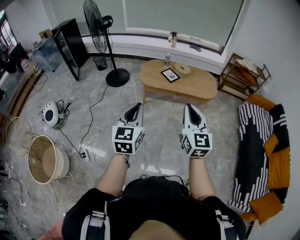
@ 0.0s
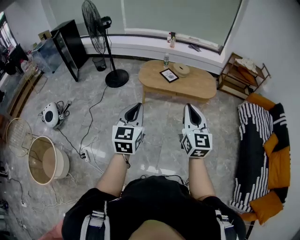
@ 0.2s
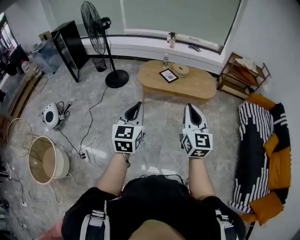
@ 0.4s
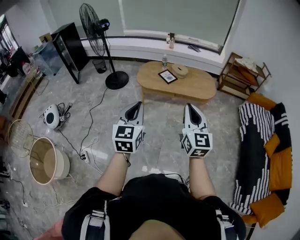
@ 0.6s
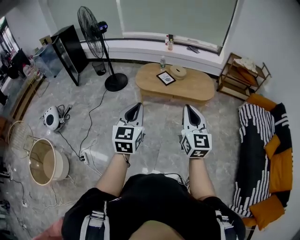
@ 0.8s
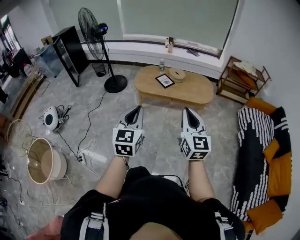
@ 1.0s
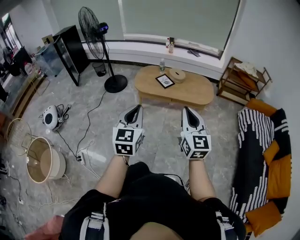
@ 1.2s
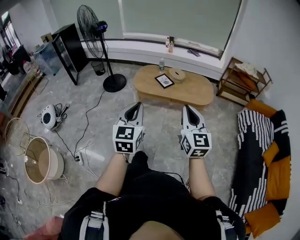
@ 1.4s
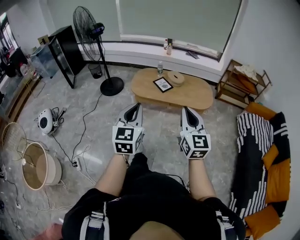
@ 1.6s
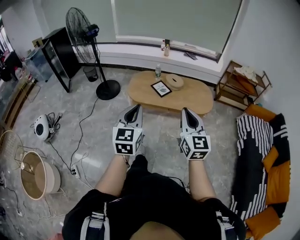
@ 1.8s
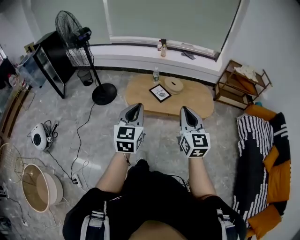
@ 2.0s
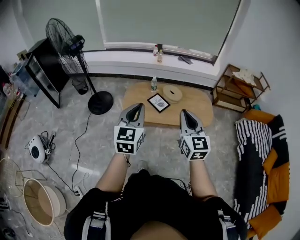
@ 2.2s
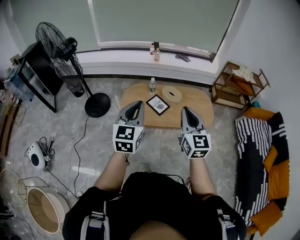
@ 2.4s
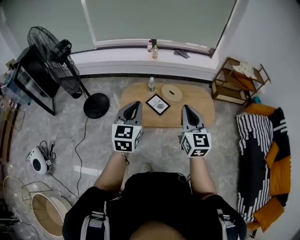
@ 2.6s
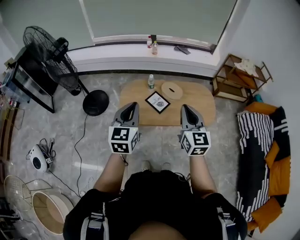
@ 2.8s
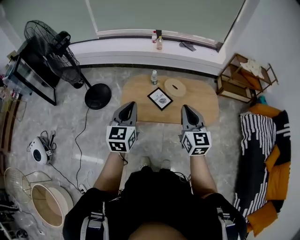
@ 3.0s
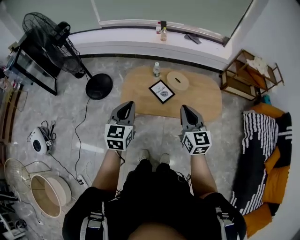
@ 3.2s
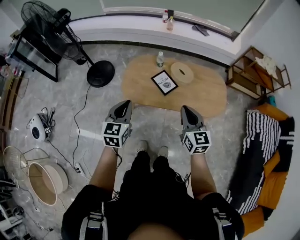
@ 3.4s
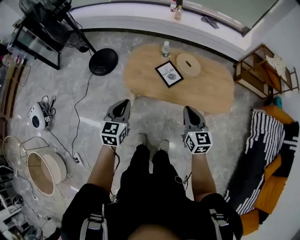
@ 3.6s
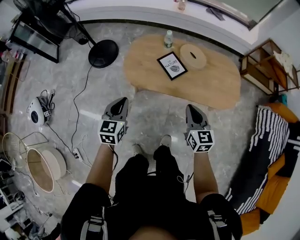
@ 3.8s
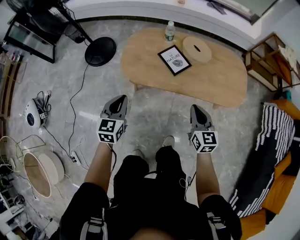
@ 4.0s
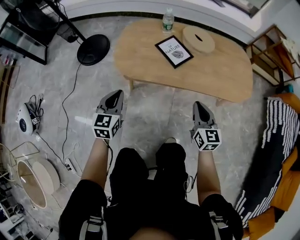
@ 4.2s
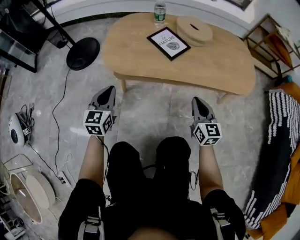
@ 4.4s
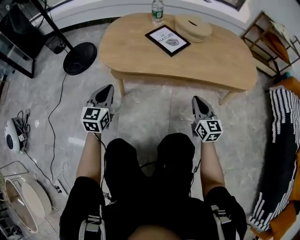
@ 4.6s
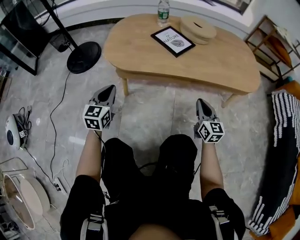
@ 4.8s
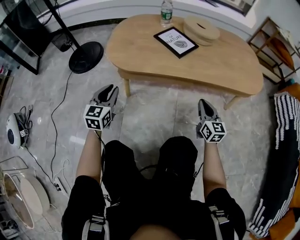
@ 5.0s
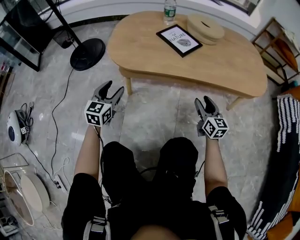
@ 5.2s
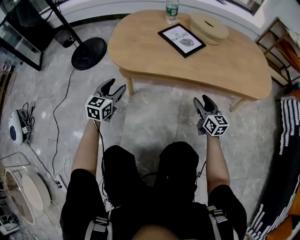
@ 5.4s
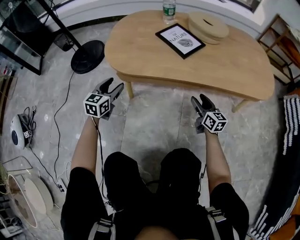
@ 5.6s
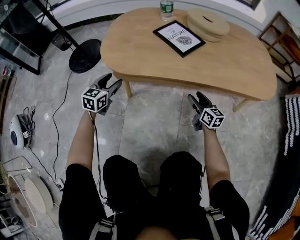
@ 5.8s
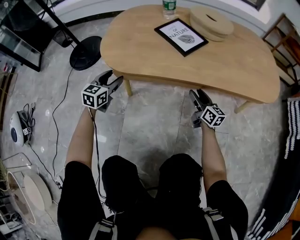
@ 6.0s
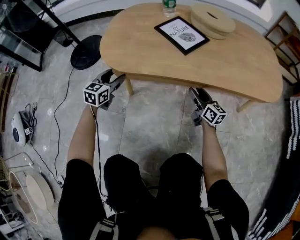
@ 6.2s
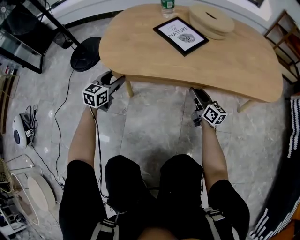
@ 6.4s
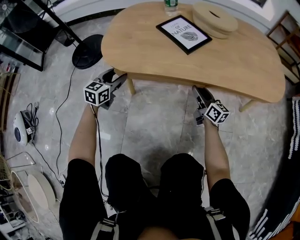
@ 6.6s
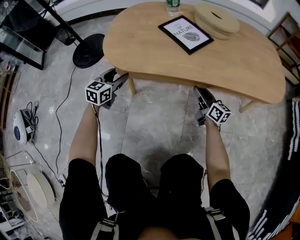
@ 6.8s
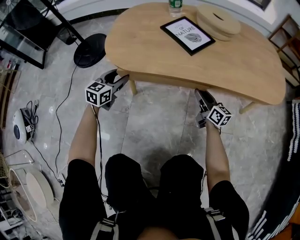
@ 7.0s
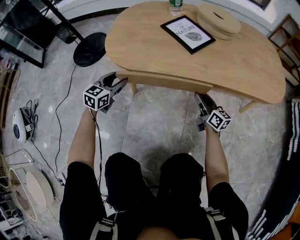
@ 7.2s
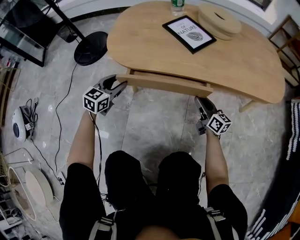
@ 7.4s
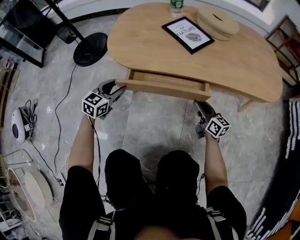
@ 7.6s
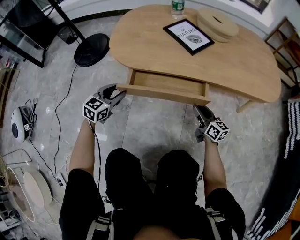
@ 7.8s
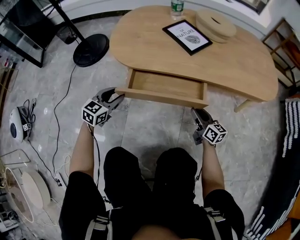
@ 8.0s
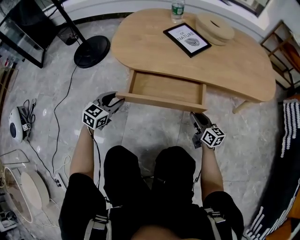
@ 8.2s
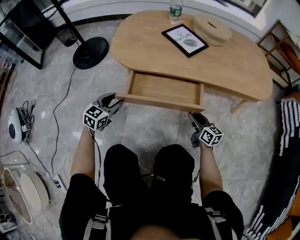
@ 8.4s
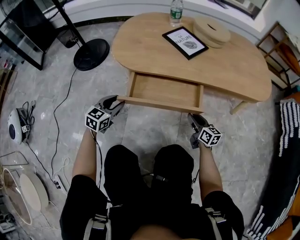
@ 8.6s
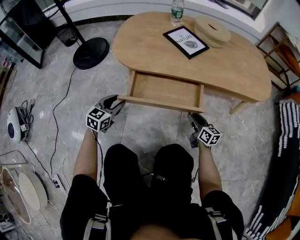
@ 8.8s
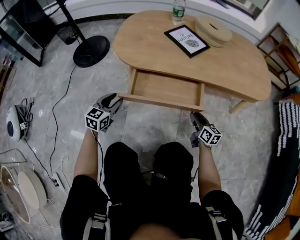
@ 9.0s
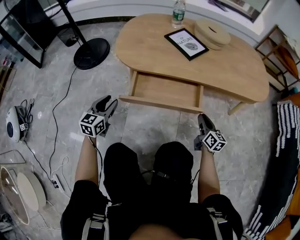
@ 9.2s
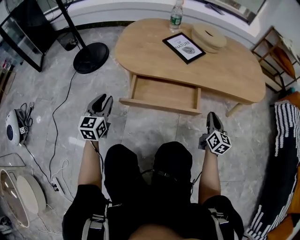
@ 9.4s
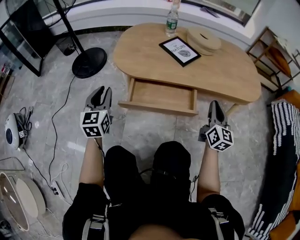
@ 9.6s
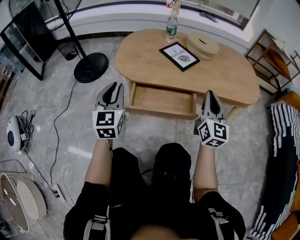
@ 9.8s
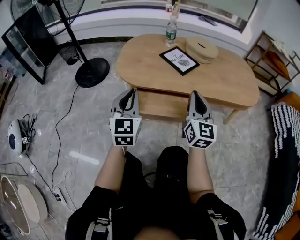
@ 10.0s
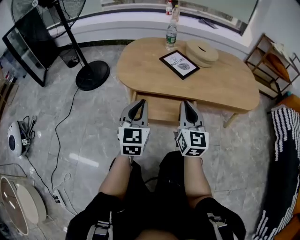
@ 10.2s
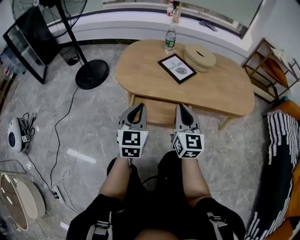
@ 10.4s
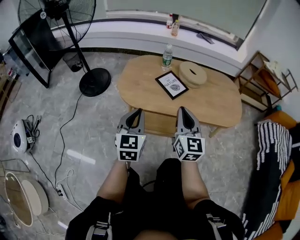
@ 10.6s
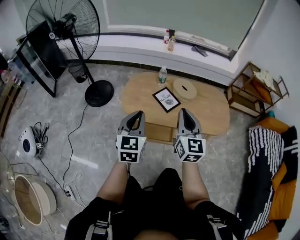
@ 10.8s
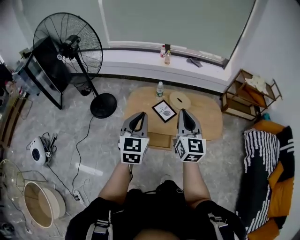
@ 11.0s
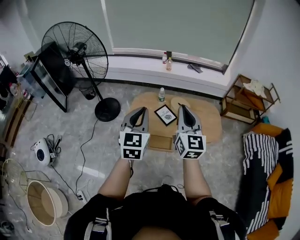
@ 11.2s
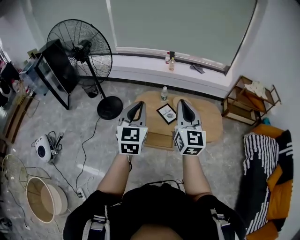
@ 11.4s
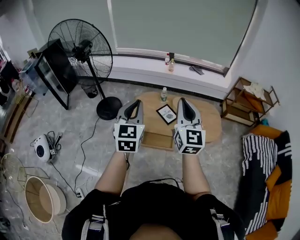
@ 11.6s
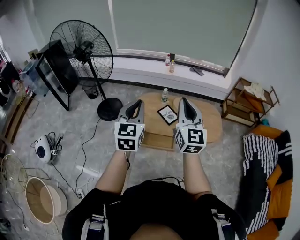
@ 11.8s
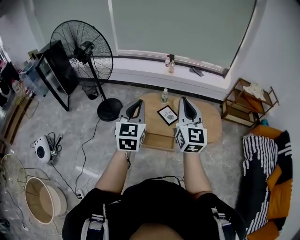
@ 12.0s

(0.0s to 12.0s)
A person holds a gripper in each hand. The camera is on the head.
0.0s - 1.6s: The left gripper shifts roughly 15 cm to the right and forward; the right gripper goes about 15 cm forward and to the right.
1.6s - 3.0s: Both grippers are carried forward, approximately 50 cm.
3.0s - 4.4s: The grippers both shift downward by about 60 cm.
4.4s - 6.0s: Both grippers travel together downward and forward, about 25 cm. The left gripper opens up. The right gripper changes its angle by some 30 degrees, and opens its fingers.
6.0s - 7.6s: The grippers both shift backward by roughly 5 cm. The right gripper closes its fingers.
7.6s - 9.0s: The grippers both shift backward by about 10 cm.
9.0s - 10.4s: The right gripper heads upward, covering approximately 35 cm, rotates roughly 40 degrees, and closes up. The left gripper goes some 30 cm upward and to the right, rotates some 20 degrees, and closes up.
10.4s - 12.0s: The grippers both shift upward by about 70 cm.

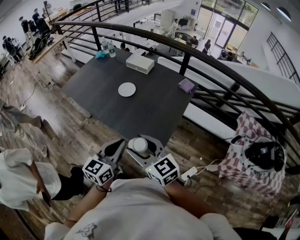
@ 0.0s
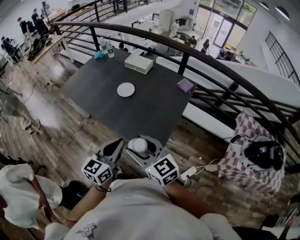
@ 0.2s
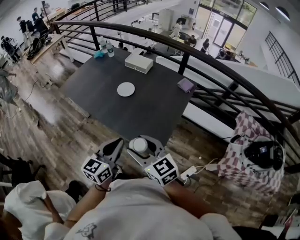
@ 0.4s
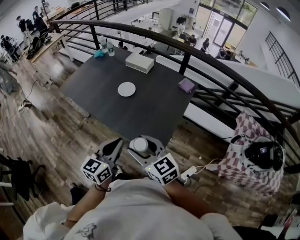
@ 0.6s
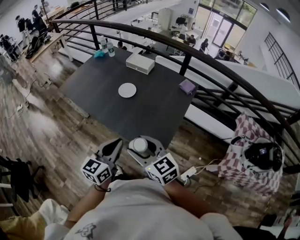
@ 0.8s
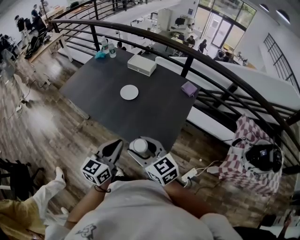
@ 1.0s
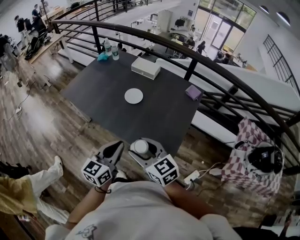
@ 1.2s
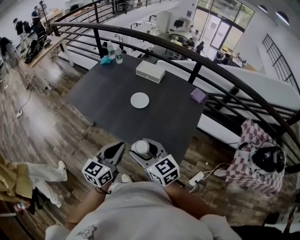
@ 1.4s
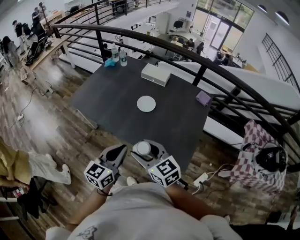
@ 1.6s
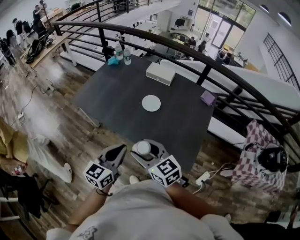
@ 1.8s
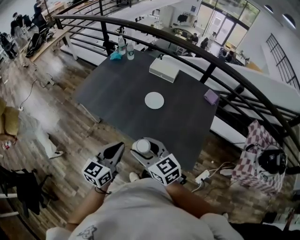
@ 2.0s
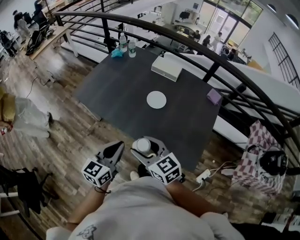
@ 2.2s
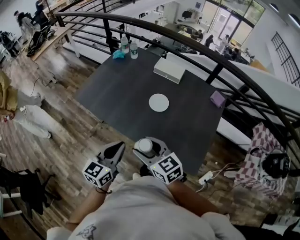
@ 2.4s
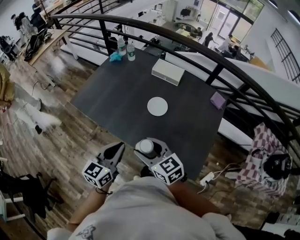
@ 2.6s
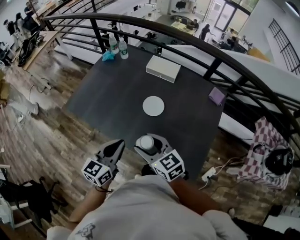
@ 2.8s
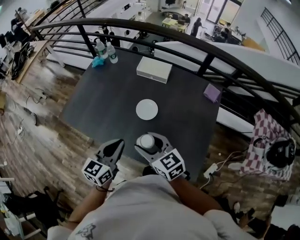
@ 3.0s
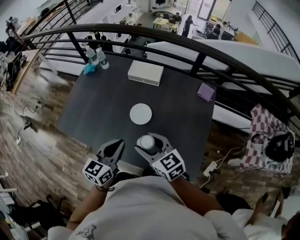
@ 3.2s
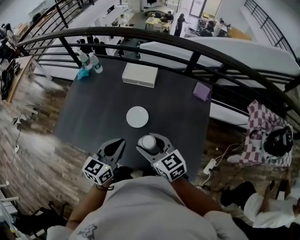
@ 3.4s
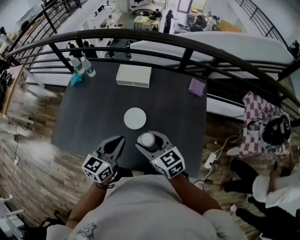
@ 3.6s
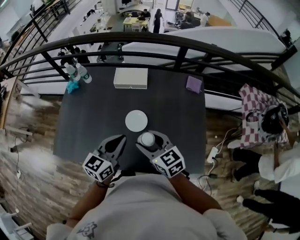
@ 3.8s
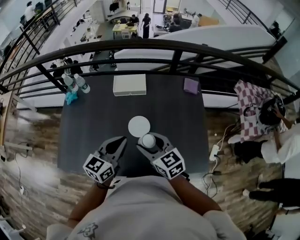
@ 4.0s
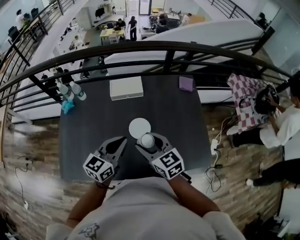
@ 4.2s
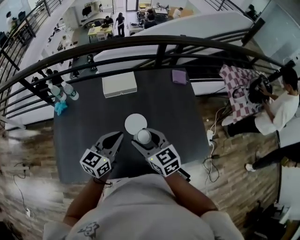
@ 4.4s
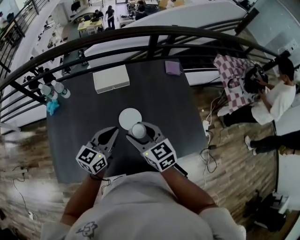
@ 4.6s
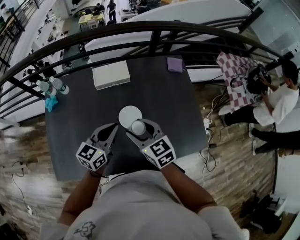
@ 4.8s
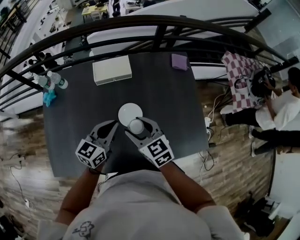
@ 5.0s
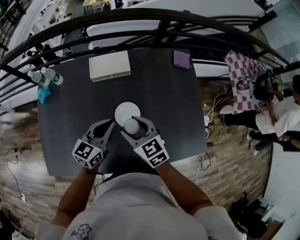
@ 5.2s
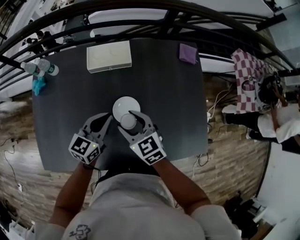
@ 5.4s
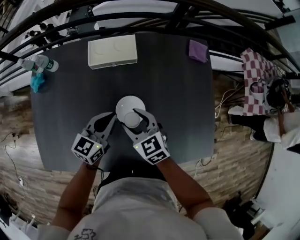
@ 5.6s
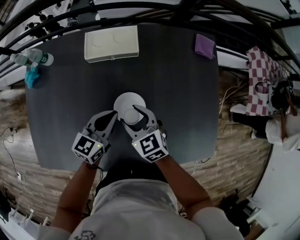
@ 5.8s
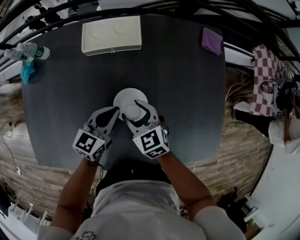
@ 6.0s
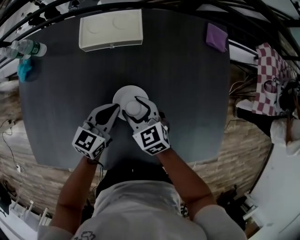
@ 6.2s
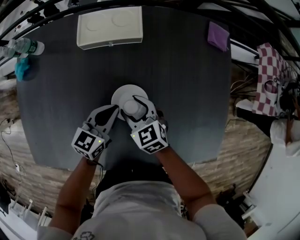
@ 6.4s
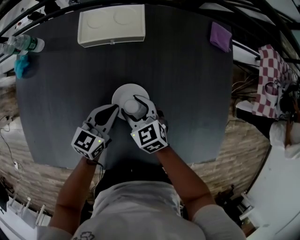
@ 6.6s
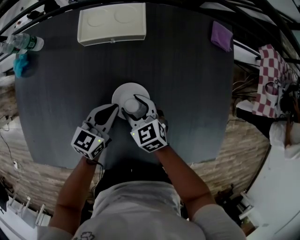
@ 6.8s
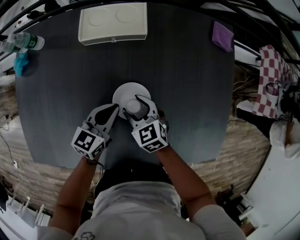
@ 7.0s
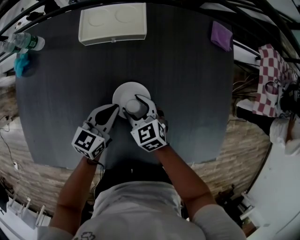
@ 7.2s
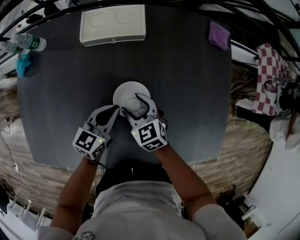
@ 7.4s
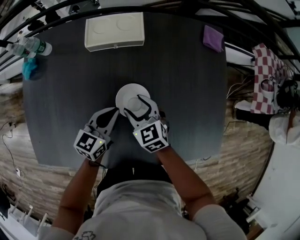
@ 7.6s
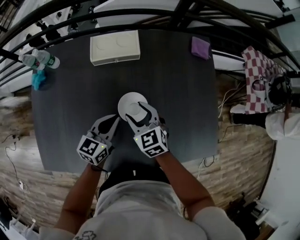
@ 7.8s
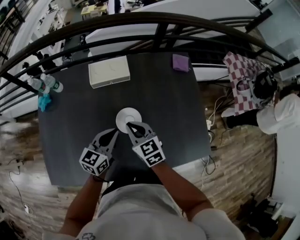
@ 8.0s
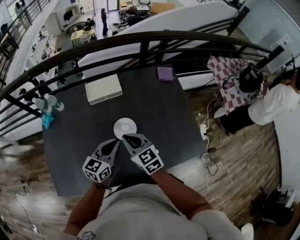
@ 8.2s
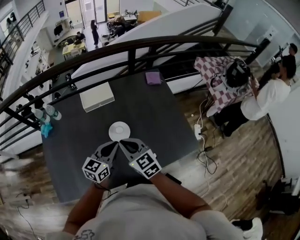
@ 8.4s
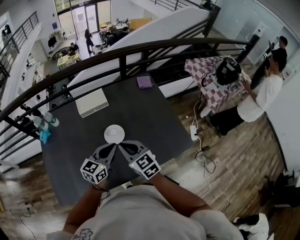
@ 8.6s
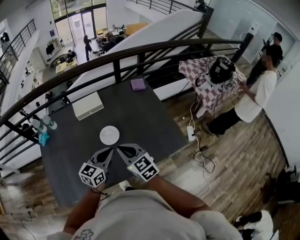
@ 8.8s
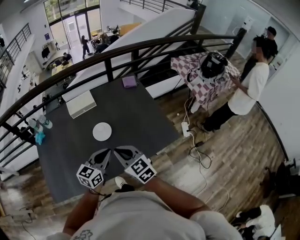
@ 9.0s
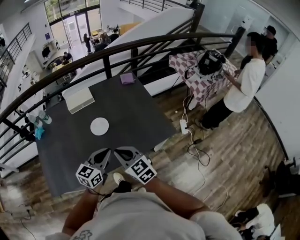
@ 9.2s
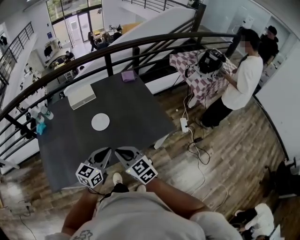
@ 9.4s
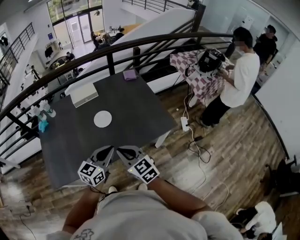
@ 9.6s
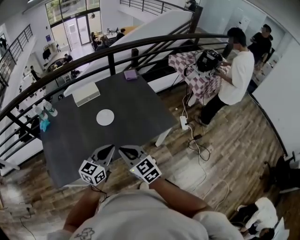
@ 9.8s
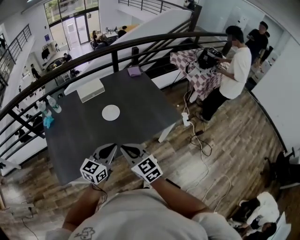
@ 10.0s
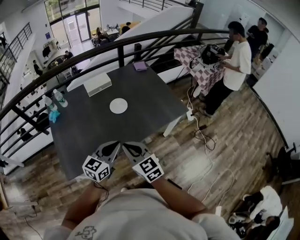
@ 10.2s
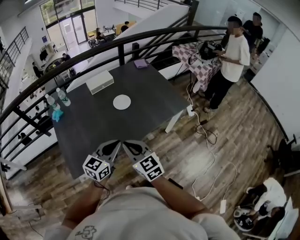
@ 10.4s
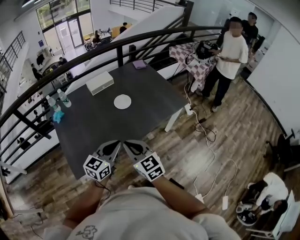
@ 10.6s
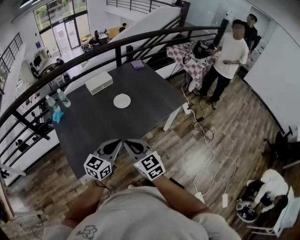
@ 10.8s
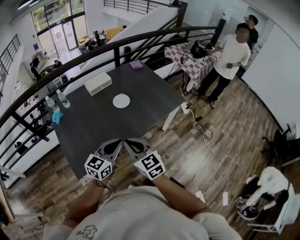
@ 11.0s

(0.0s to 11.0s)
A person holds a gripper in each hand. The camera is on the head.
0.0s - 1.6s: The grippers both shift to the left and forward by roughly 25 cm.
1.6s - 3.2s: Both grippers travel together forward, about 25 cm.
3.2s - 4.8s: The left gripper moves approximately 20 cm, and swivels roughly 30 degrees, while the right gripper ends up about 15 cm from where it was, and changes its angle by about 30 degrees.
4.8s - 6.2s: Both grippers travel together downward and forward, roughly 25 cm.
6.2s - 7.8s: The grippers both shift upward by some 5 cm.
7.8s - 9.4s: The left gripper shifts roughly 40 cm backward, upward and to the right, and changes its angle by roughly 20 degrees. Meanwhile the right gripper travels backward and upward by roughly 40 cm, and closes its fingers.
9.4s - 11.0s: The two grippers go approximately 30 cm to the left and backward.

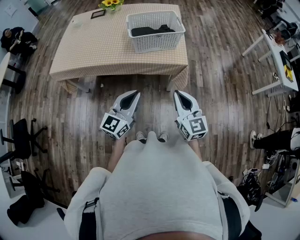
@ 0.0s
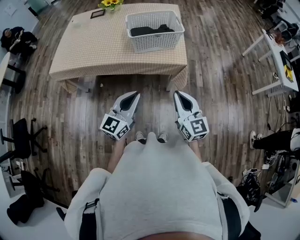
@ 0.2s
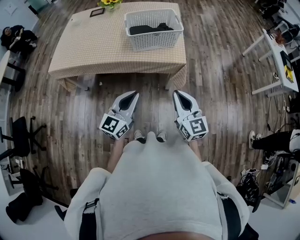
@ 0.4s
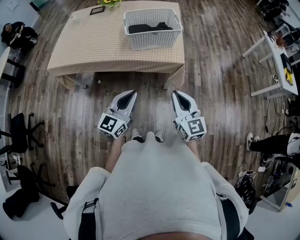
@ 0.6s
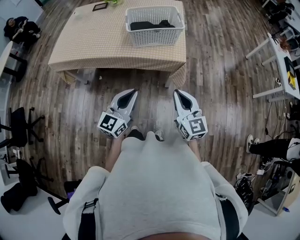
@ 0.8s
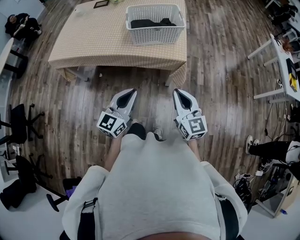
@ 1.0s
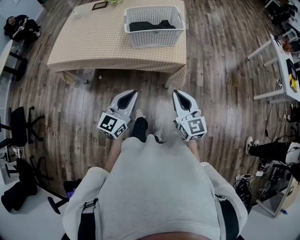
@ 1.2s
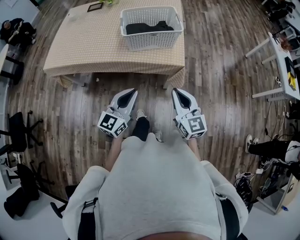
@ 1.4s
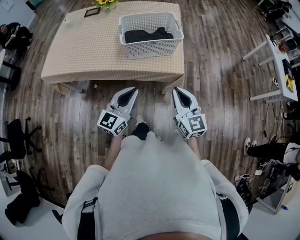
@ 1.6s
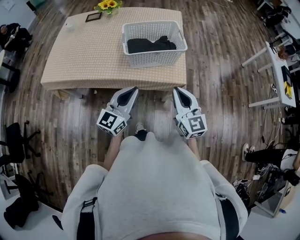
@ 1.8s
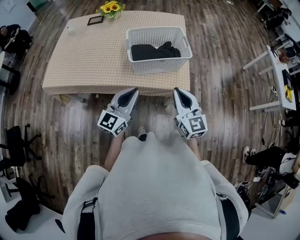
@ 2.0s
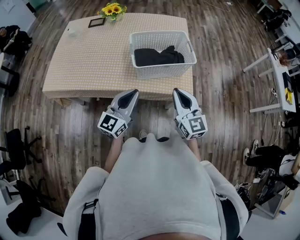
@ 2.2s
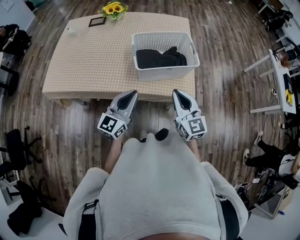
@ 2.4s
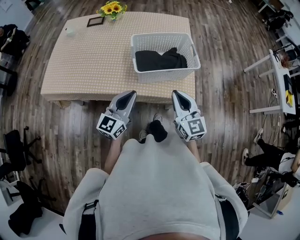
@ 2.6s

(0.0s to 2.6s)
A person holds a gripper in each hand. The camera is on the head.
0.0s - 1.2s: The left gripper shifts by approximately 5 cm; the right gripper moves some 5 cm.
1.2s - 2.6s: Both grippers move forward and to the left, some 25 cm.
